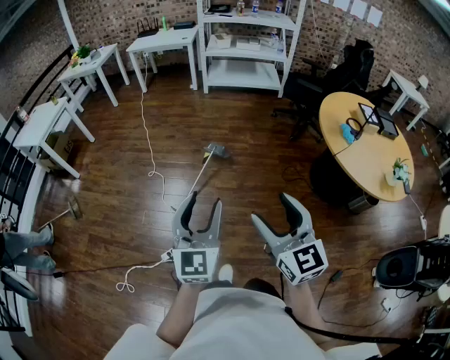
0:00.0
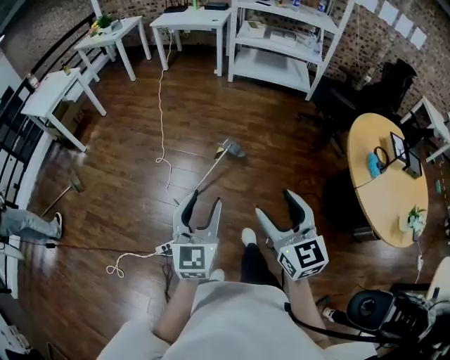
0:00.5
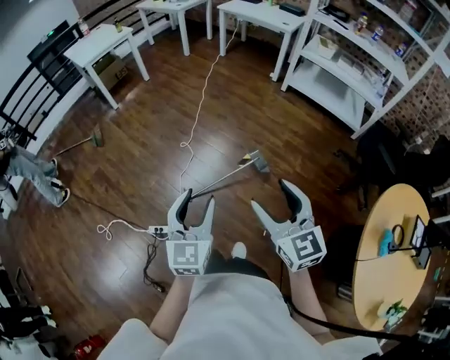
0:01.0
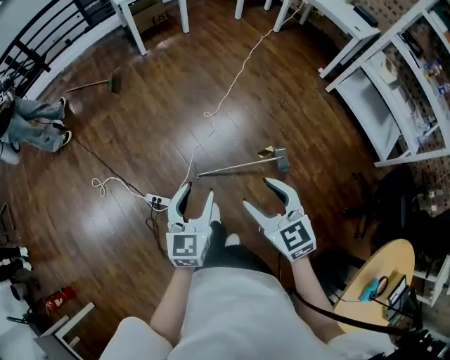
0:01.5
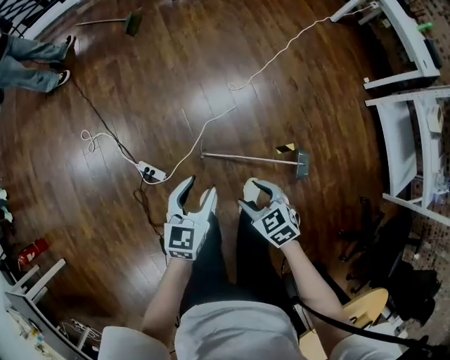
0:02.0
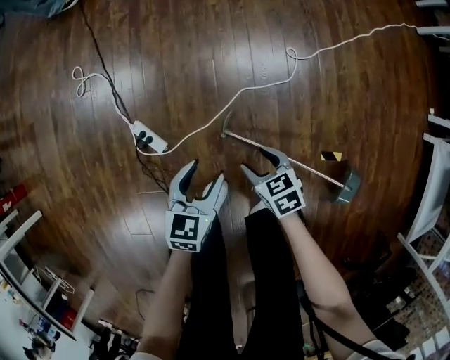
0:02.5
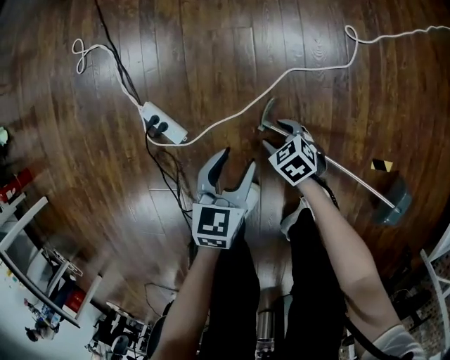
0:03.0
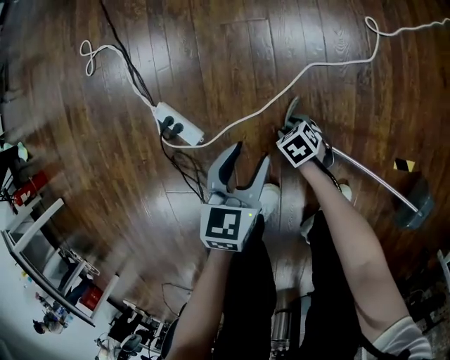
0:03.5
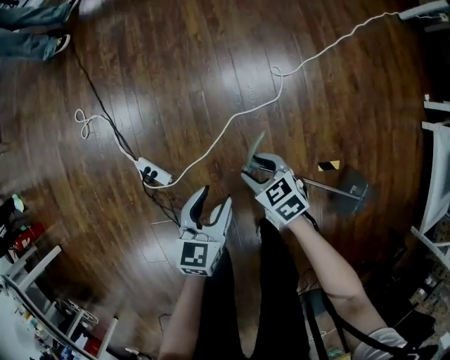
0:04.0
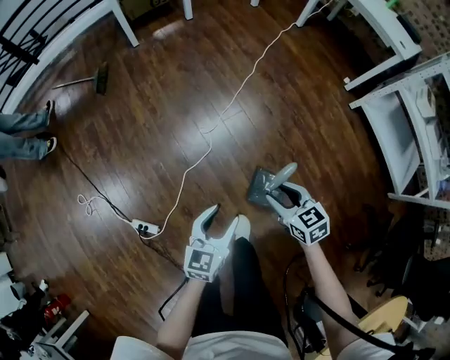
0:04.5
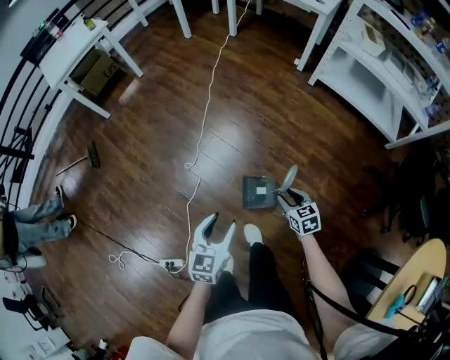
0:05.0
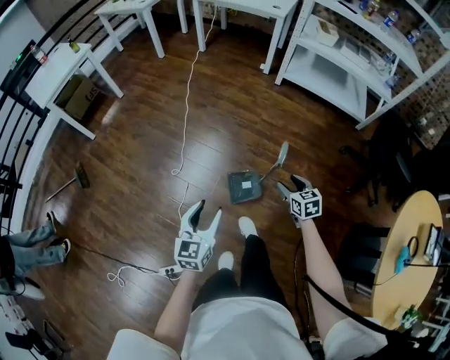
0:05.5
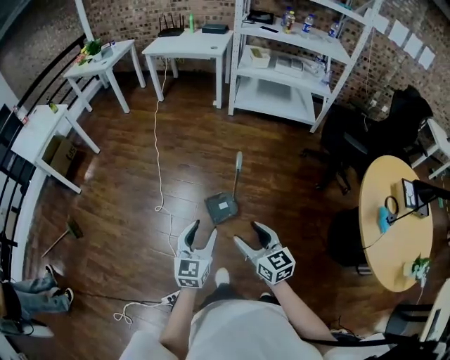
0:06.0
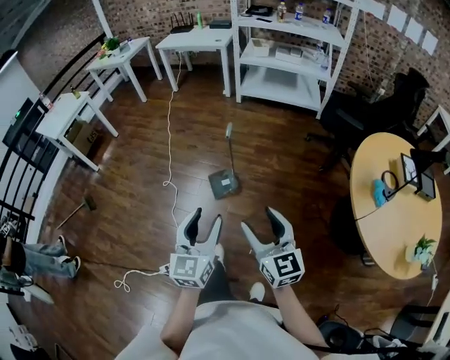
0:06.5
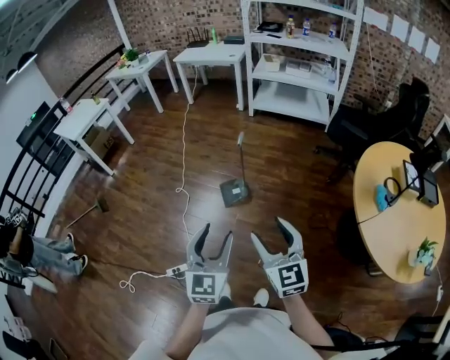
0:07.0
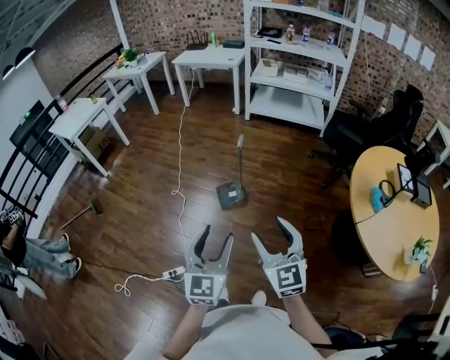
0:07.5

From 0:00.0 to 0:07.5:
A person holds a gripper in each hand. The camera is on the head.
From 0:00.0 to 0:02.0: The two grippers travel together, approximately 50 cm. The left gripper rotates approximately 60 degrees. Meanwhile the right gripper tips its fingers downward by approximately 50 degrees.
From 0:02.0 to 0:04.0: Both grippers move downward, roughly 30 cm.
From 0:04.0 to 0:05.5: The left gripper goes some 35 cm upward, and changes its angle by about 50 degrees. The right gripper shifts by approximately 60 cm, and rotates approximately 80 degrees.
From 0:05.5 to 0:07.5: The two grippers travel together, backward, roughly 50 cm. The left gripper is displaced upward by approximately 25 cm, and turns by roughly 20 degrees. Meanwhile the right gripper is displaced upward by roughly 35 cm, and angles its fingers upward, by roughly 30 degrees.

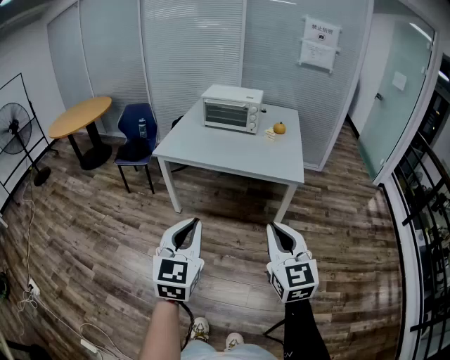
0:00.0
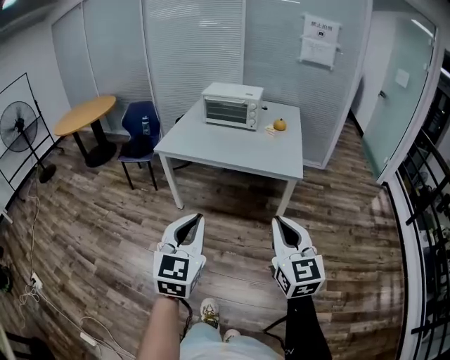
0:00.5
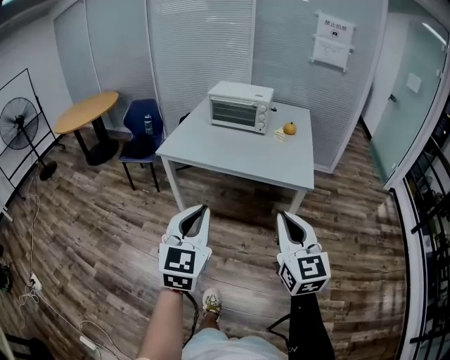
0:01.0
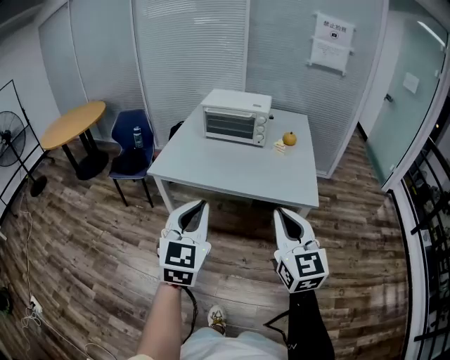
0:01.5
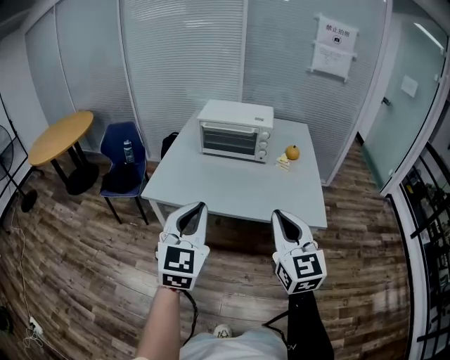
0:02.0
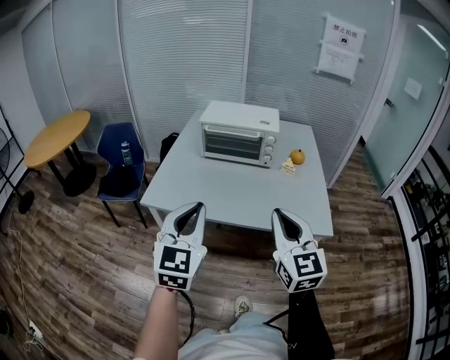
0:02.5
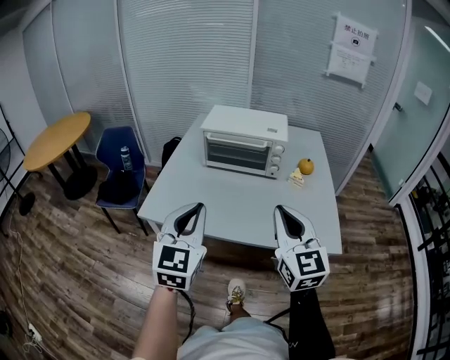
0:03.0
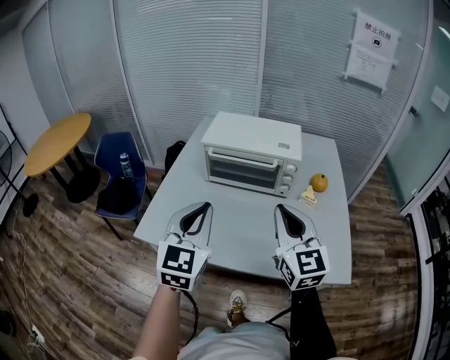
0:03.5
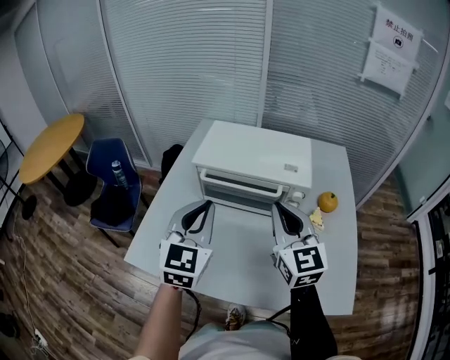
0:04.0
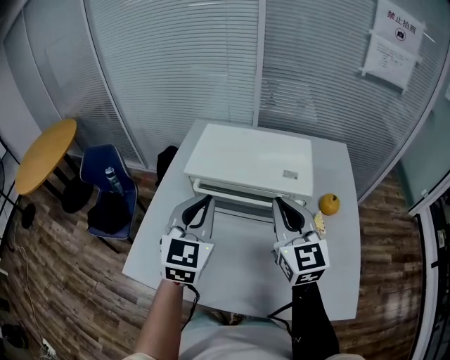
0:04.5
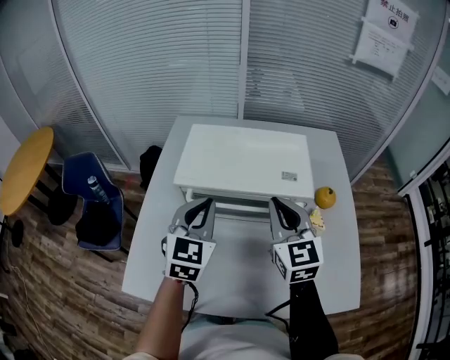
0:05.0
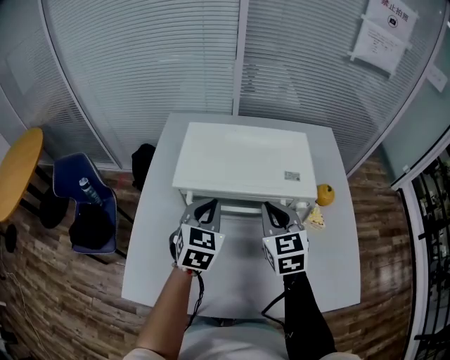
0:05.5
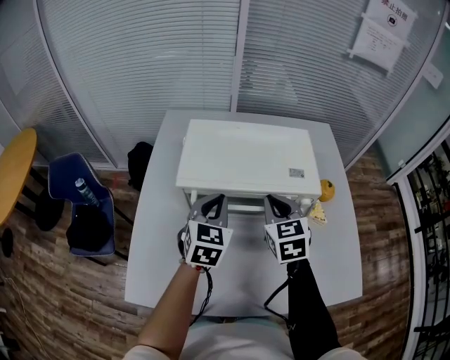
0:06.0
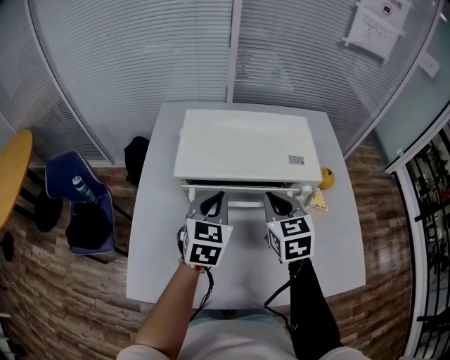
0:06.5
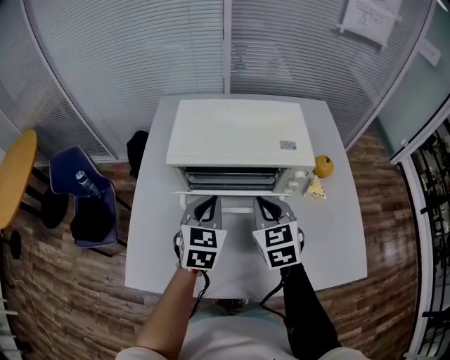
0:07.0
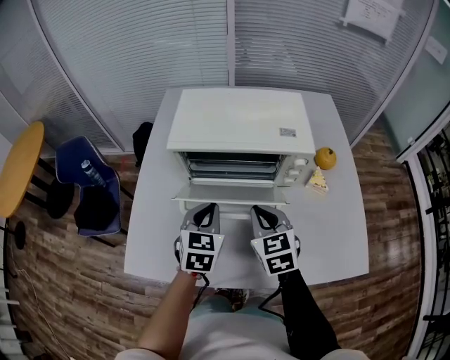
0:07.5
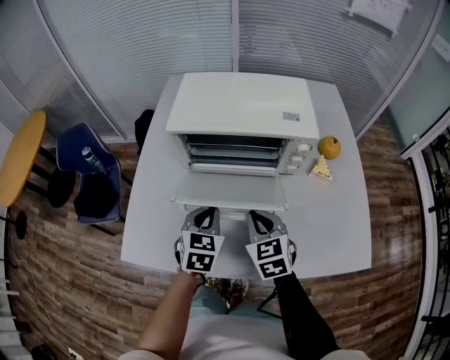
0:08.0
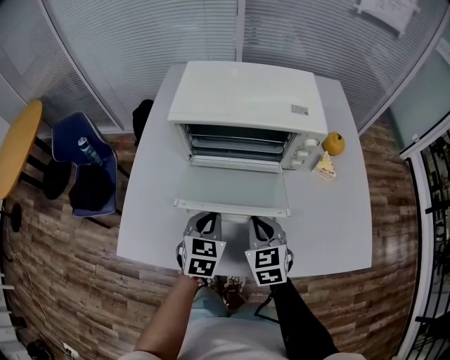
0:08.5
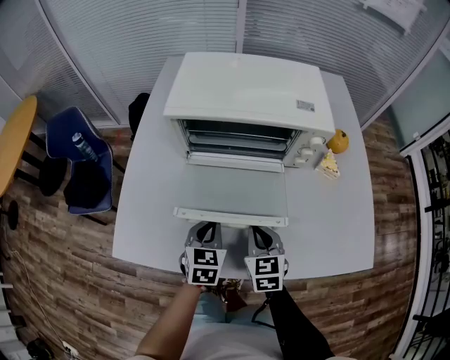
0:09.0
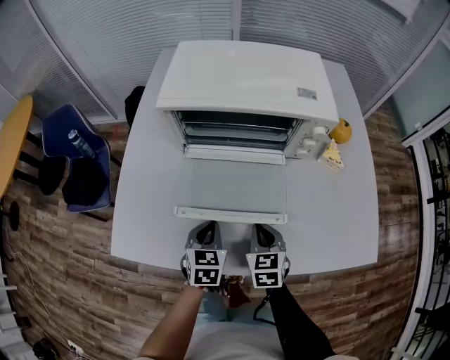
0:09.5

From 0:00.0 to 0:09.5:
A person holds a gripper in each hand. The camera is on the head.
From 0:00.0 to 0:02.0: Both grippers move forward, some 35 cm.
From 0:02.0 to 0:04.0: The two grippers travel together, forward, approximately 50 cm.
From 0:04.0 to 0:05.5: The two grippers go approximately 20 cm forward and downward. The right gripper swivels about 30 degrees; the left gripper turns by roughly 20 degrees.
From 0:05.5 to 0:07.5: The grippers both shift backward and downward by about 15 cm.
From 0:07.5 to 0:09.5: Both grippers travel together downward and backward, approximately 20 cm.

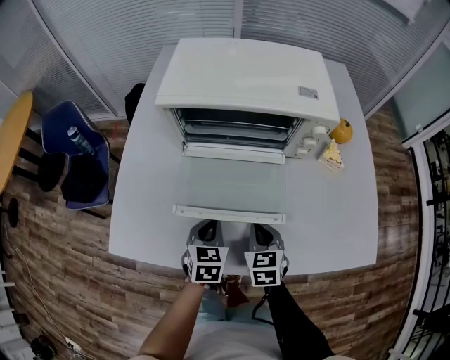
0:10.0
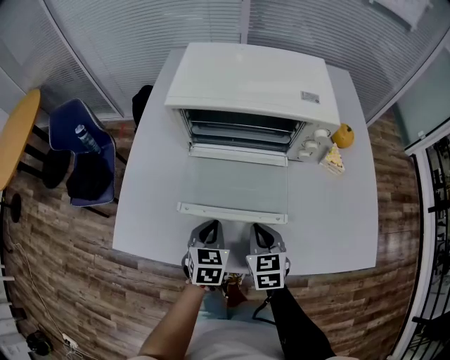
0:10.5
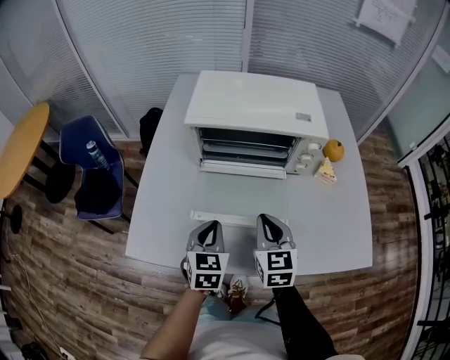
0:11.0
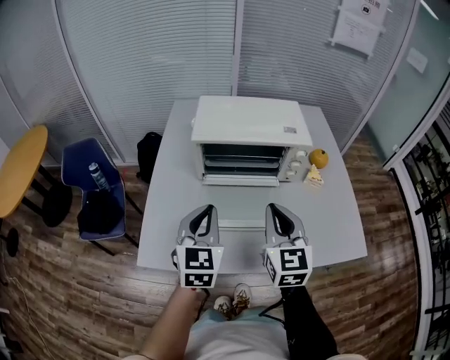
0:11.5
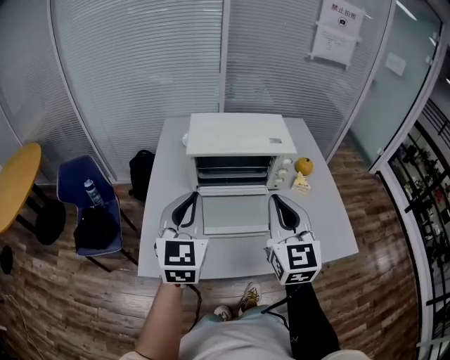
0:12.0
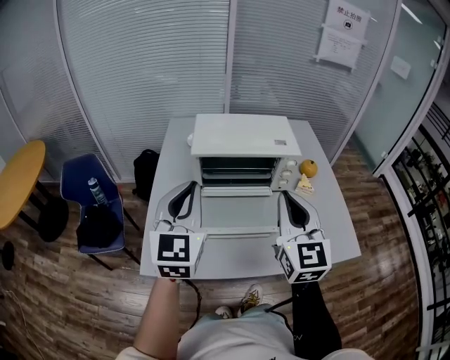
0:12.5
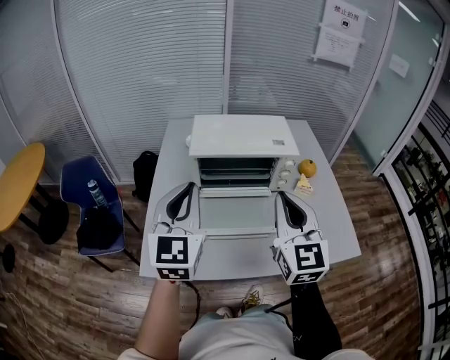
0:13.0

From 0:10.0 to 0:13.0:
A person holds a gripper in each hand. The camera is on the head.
From 0:10.0 to 0:11.5: Both grippers move upward, some 30 cm. The right gripper angles its fingers upward, by approximately 30 degrees; the left gripper swivels about 30 degrees.
From 0:11.5 to 0:13.0: Both grippers move upward, some 10 cm.

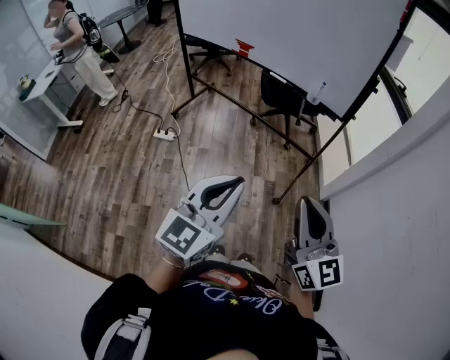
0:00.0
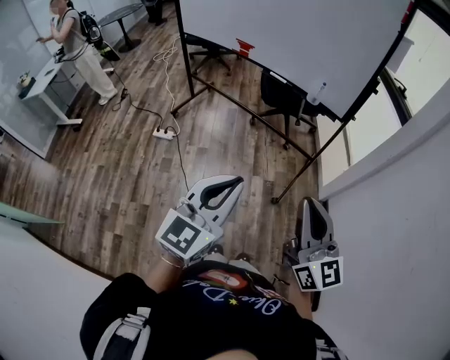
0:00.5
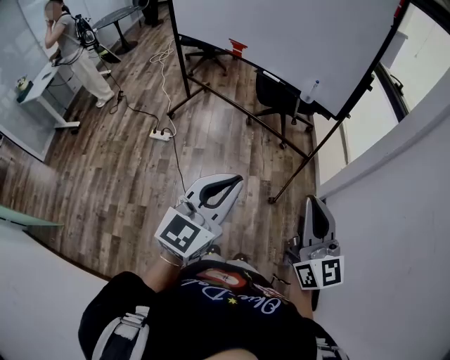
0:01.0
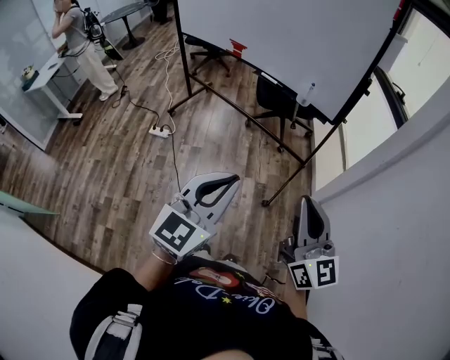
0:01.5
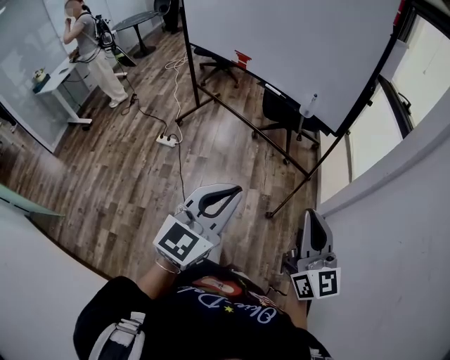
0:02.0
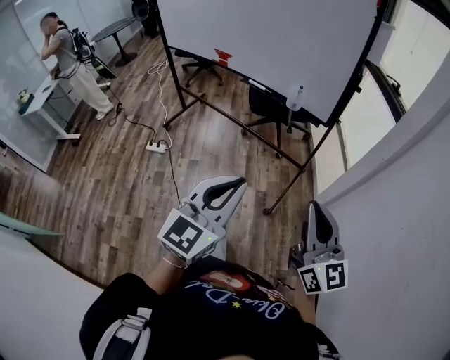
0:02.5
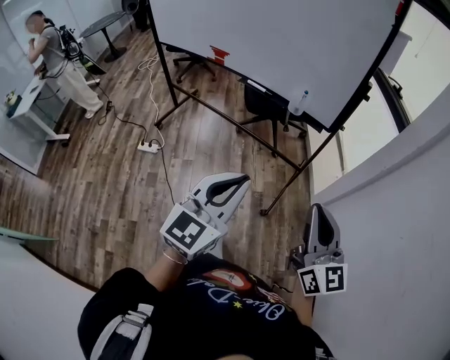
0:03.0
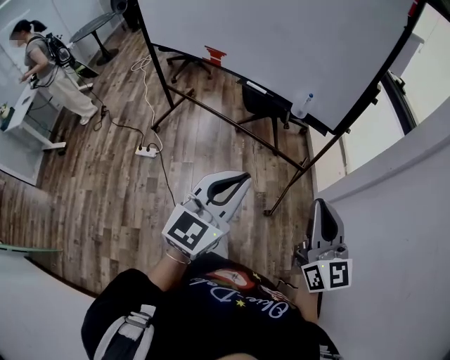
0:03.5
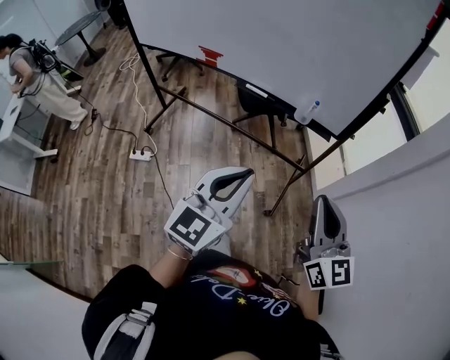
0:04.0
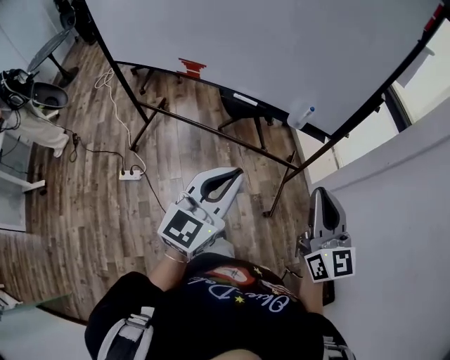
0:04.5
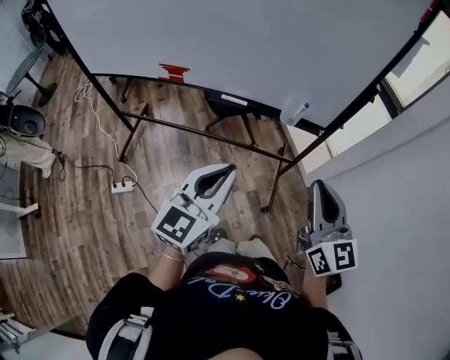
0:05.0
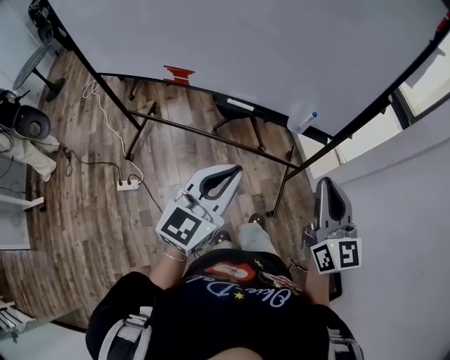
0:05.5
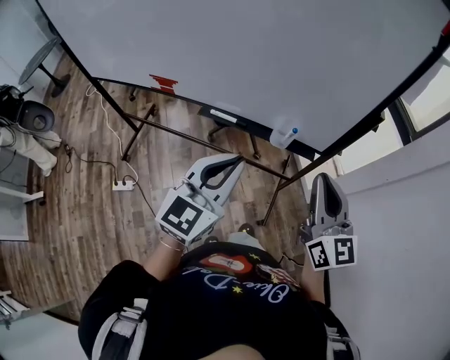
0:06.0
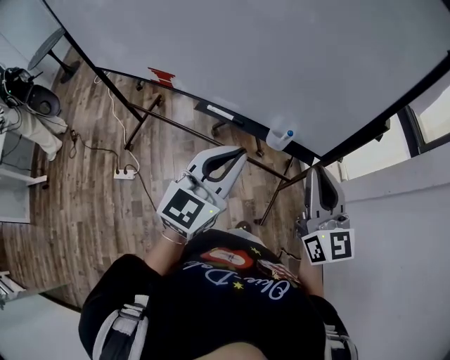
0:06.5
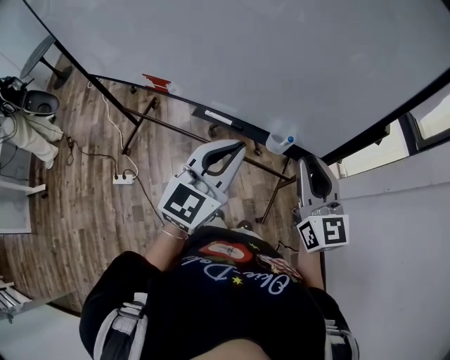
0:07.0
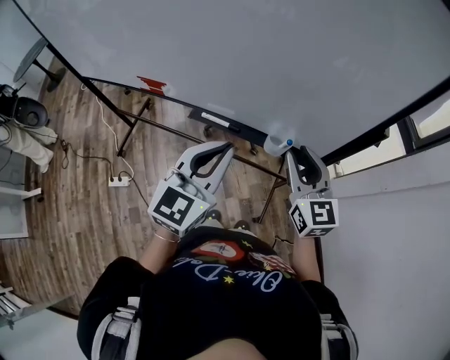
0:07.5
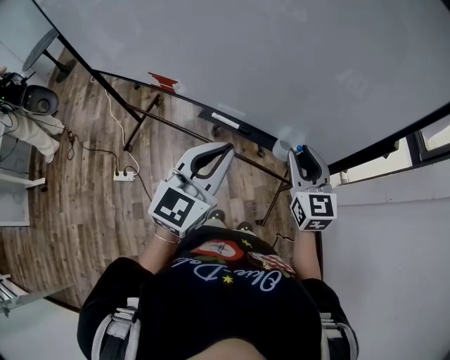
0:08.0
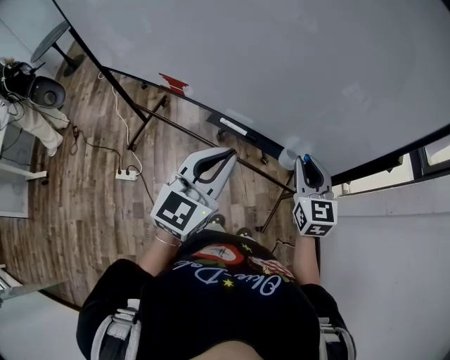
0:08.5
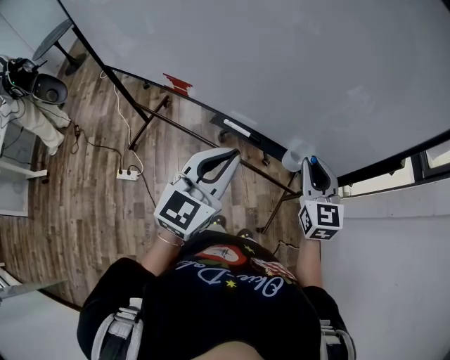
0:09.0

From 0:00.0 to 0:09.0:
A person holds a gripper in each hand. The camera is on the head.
From 0:00.0 to 0:02.0: The two grippers go roughly 10 cm to the right.
From 0:02.0 to 0:04.5: The grippers both shift forward and to the left by some 30 cm. The right gripper rotates approximately 20 degrees.
From 0:04.5 to 0:07.0: The grippers both shift forward by roughly 25 cm.
From 0:07.0 to 0:09.0: The right gripper moves forward and downward, some 10 cm; the left gripper moves to the left, about 5 cm.
